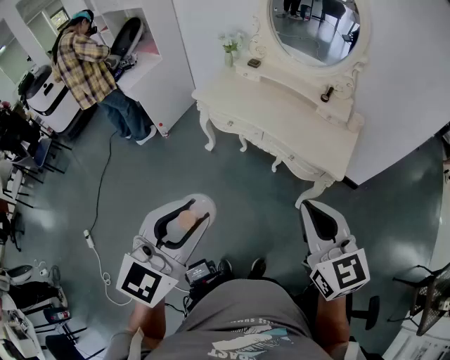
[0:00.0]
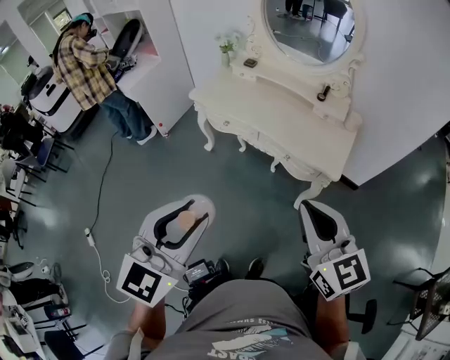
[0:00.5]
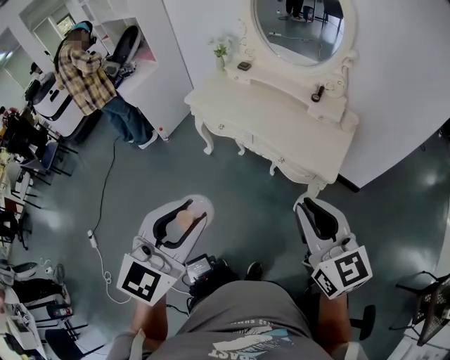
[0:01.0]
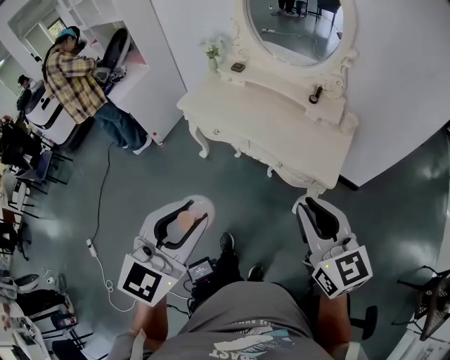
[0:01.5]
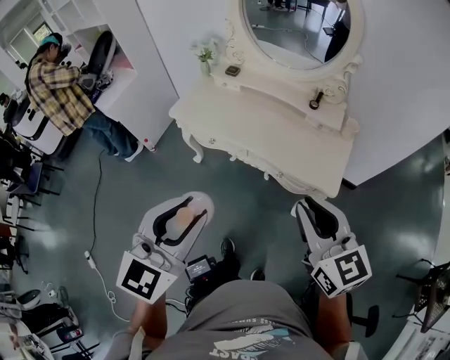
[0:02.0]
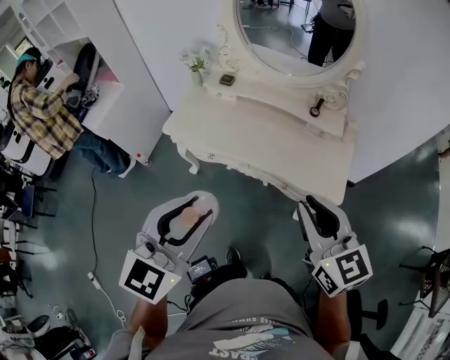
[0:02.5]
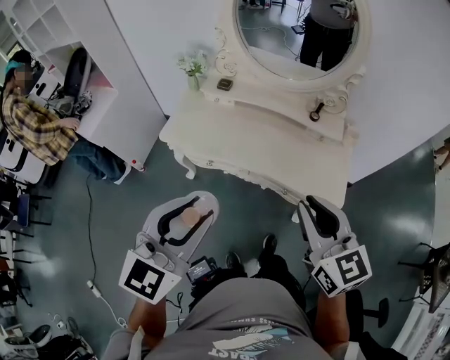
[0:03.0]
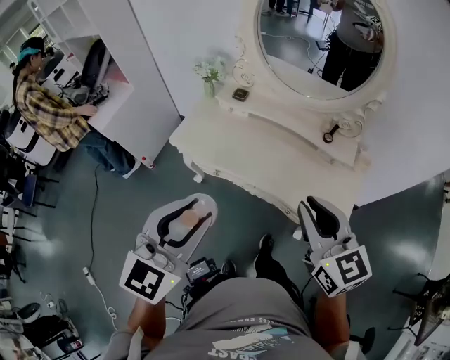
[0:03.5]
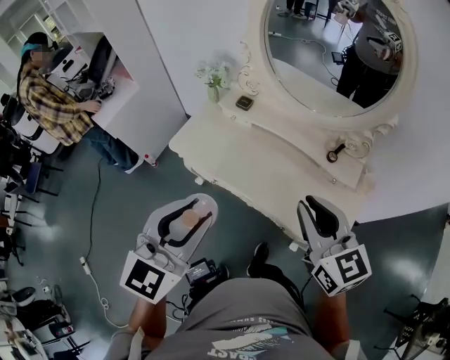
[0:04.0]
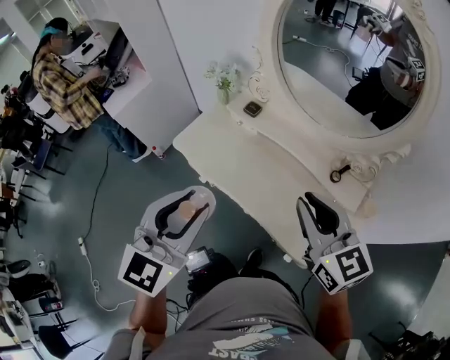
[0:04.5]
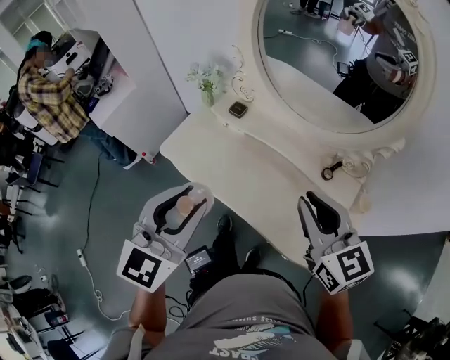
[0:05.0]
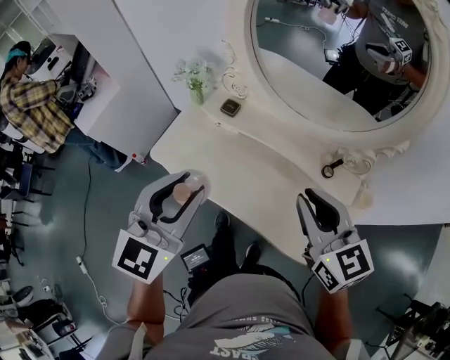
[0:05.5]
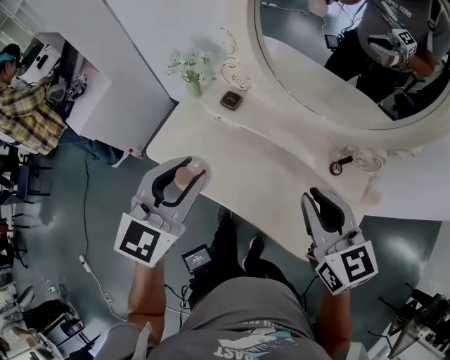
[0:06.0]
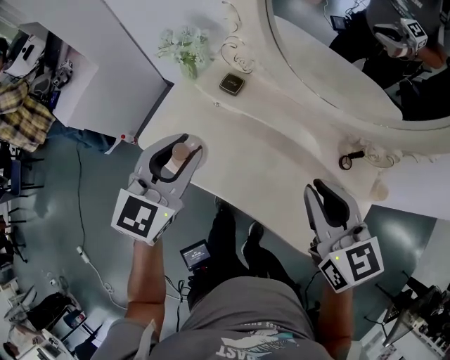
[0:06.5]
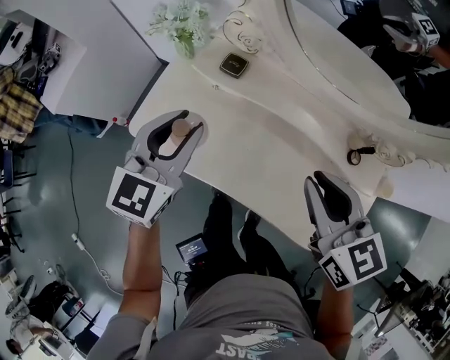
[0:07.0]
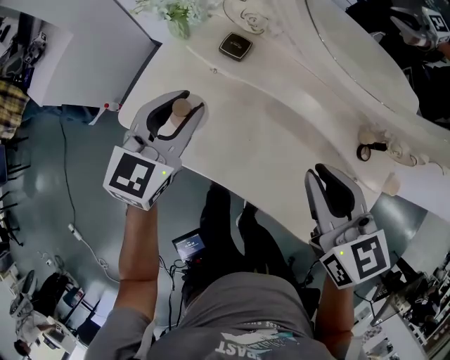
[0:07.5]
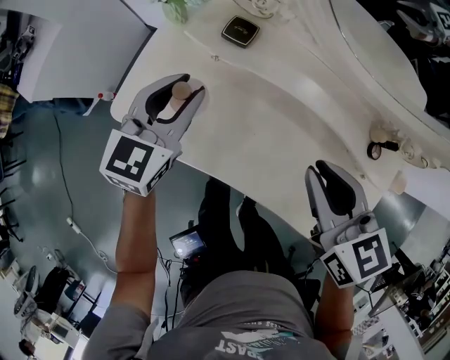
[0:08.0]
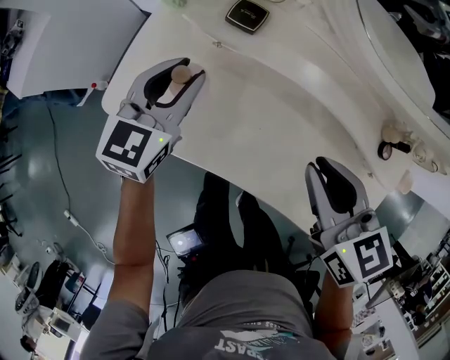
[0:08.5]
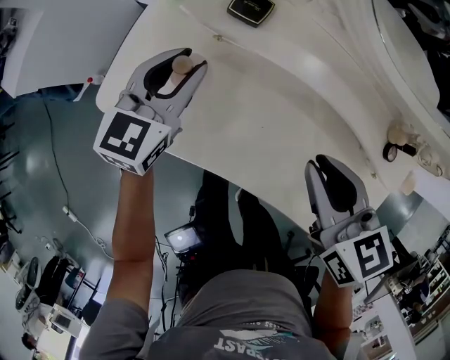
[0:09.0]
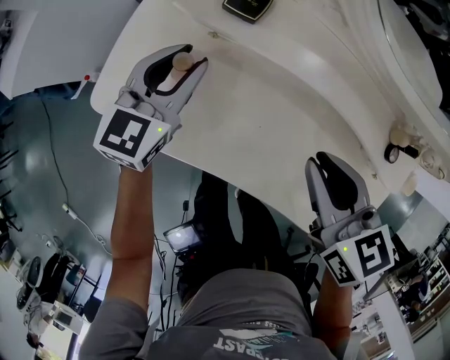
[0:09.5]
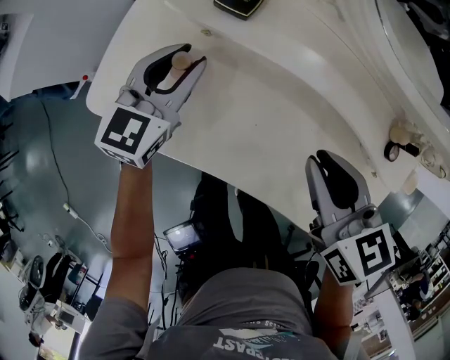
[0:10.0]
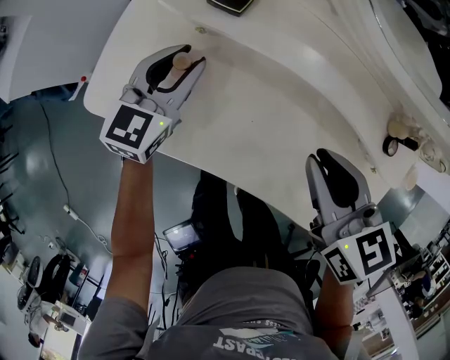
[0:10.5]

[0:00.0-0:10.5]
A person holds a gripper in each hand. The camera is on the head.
0:00.0 to 0:02.0: The left gripper moves forward, roughly 15 cm. Meanwhile the right gripper shifts some 15 cm forward and to the right.
0:02.0 to 0:04.0: The grippers both shift forward by some 25 cm.
0:04.0 to 0:06.5: The grippers both shift forward and downward by approximately 30 cm.
0:06.5 to 0:08.5: The right gripper shifts about 15 cm downward. Meanwhile the left gripper shifts roughly 25 cm downward and forward.
0:08.5 to 0:10.5: The left gripper shifts roughly 5 cm downward.

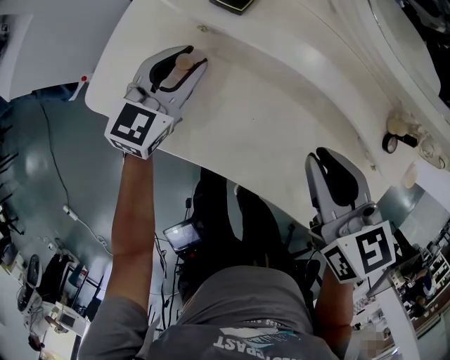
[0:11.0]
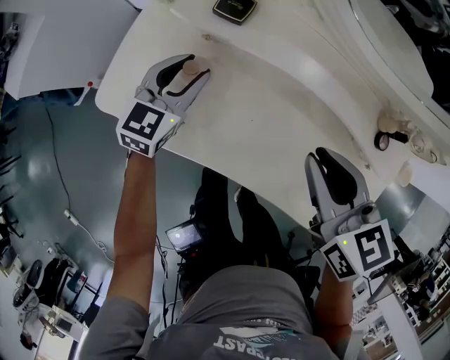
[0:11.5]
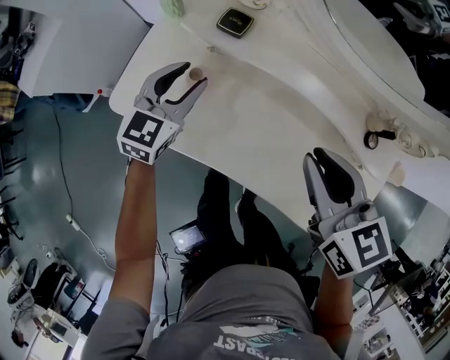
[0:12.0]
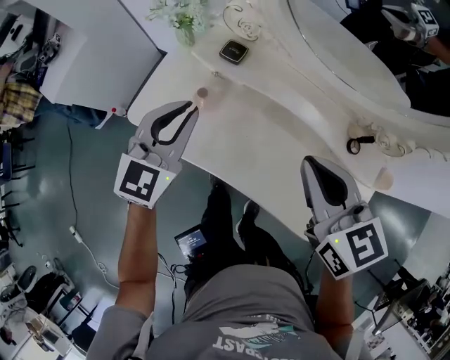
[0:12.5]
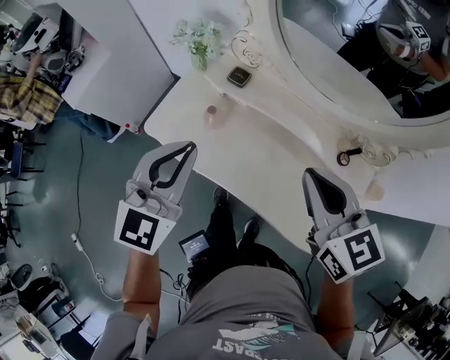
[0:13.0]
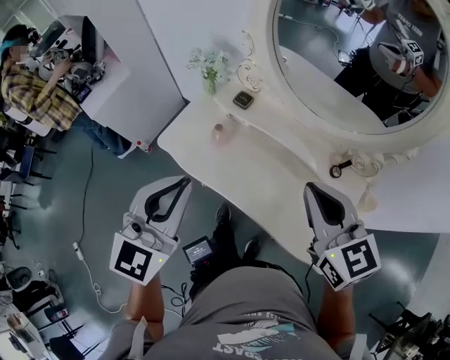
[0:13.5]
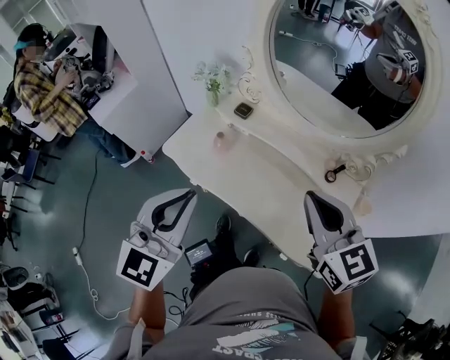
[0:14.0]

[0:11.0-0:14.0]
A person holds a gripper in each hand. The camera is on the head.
0:11.0 to 0:12.5: The right gripper heads upward, covering about 15 cm; the left gripper goes roughly 25 cm upward and backward.
0:12.5 to 0:14.0: The right gripper shifts approximately 20 cm upward and backward. Meanwhile the left gripper travels backward and upward by about 30 cm.

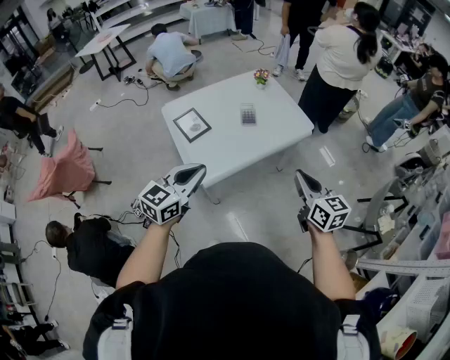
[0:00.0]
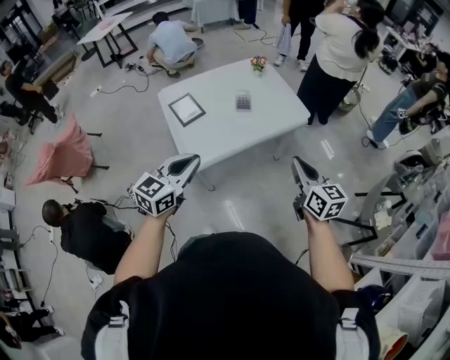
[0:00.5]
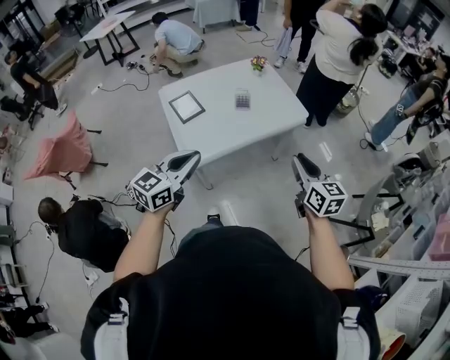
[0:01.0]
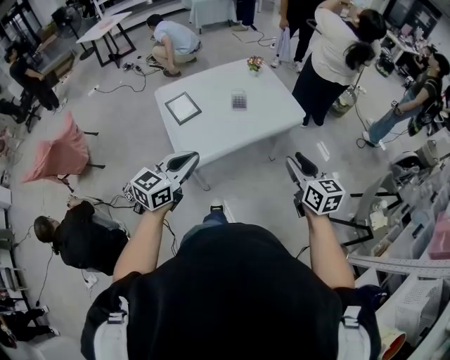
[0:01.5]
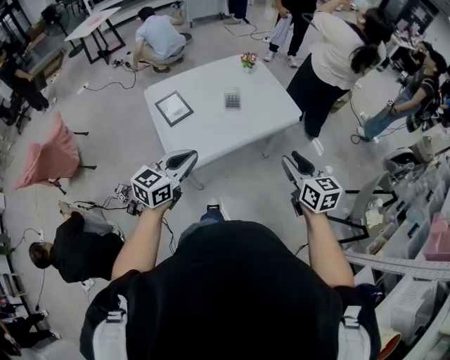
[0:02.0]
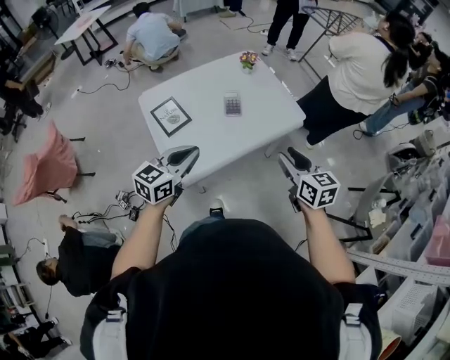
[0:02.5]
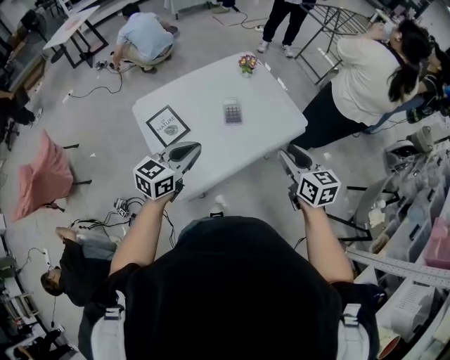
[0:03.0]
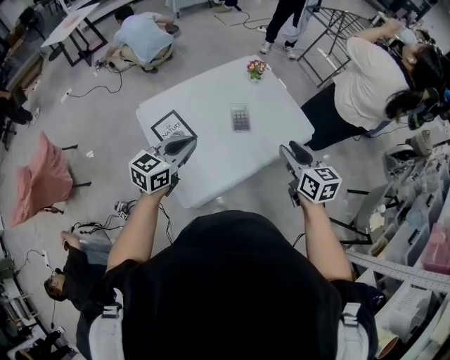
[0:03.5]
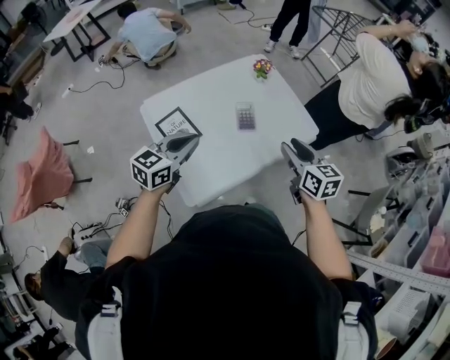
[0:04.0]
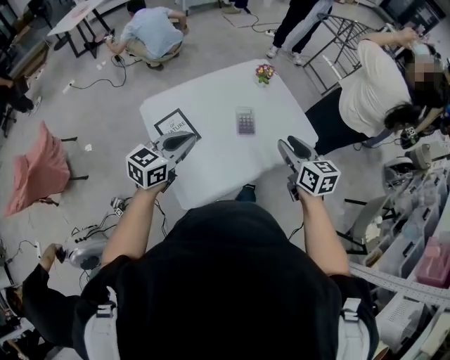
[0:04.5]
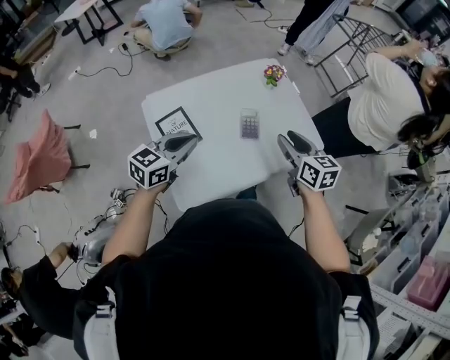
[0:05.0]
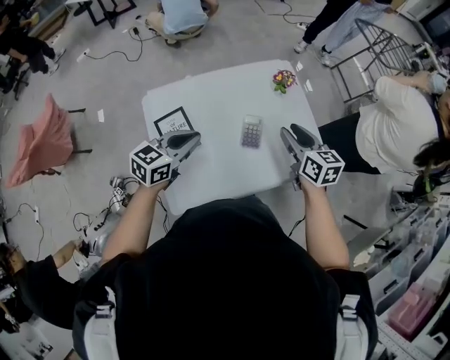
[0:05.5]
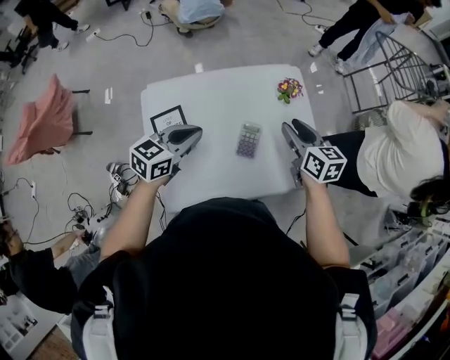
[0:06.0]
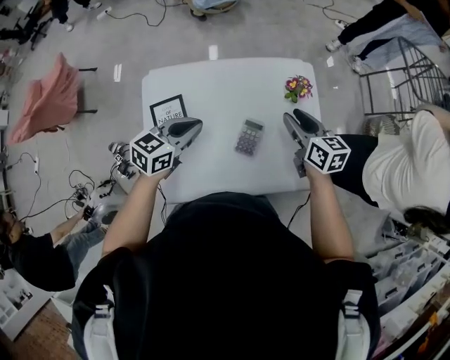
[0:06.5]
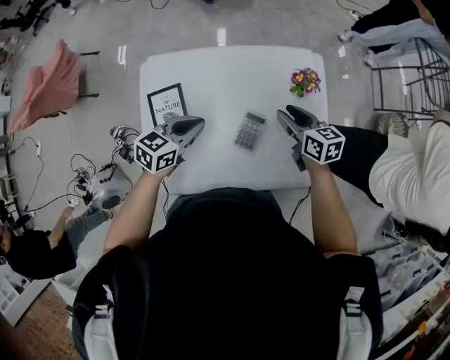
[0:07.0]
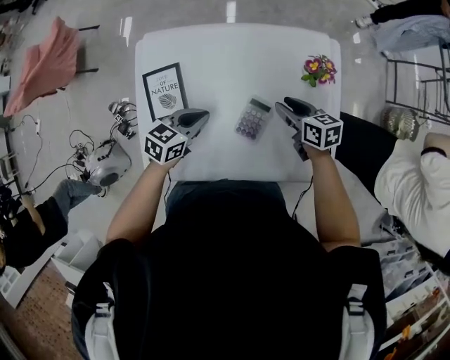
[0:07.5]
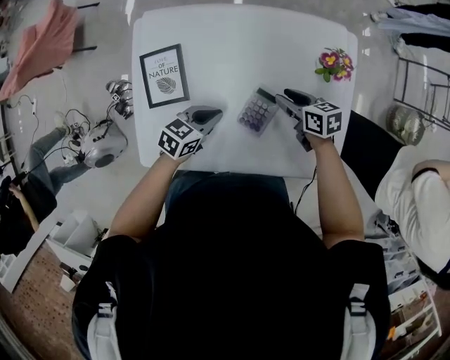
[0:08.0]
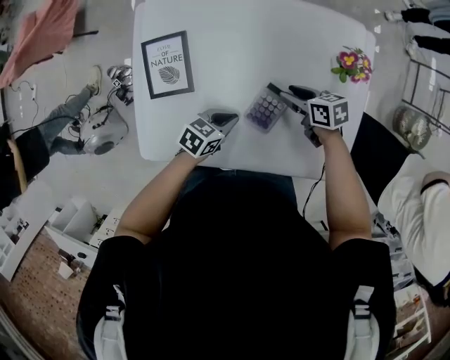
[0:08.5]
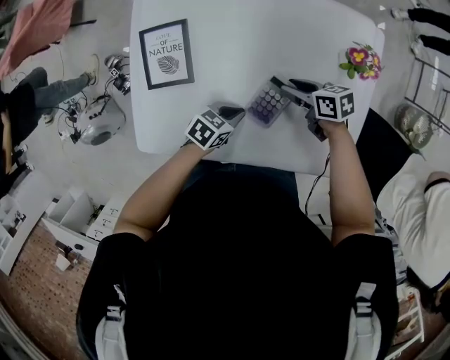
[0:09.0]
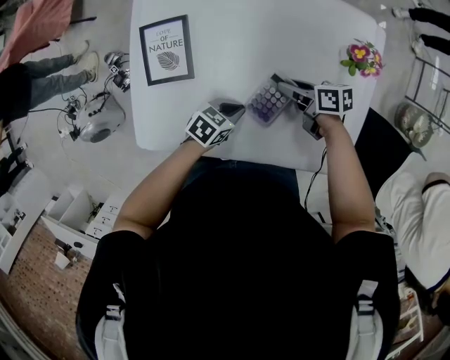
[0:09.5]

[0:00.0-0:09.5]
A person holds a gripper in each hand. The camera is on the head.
0:00.0 to 0:02.0: The right gripper changes place by some 5 cm, and opens up, while the left gripper shifts by approximately 5 cm.
0:02.0 to 0:04.0: Both grippers move forward and to the left, about 25 cm.
0:04.0 to 0:05.5: The left gripper heads forward, covering roughly 10 cm; the right gripper travels forward by approximately 20 cm.
0:05.5 to 0:07.5: The two grippers go about 20 cm downward. The left gripper changes its angle by about 30 degrees. Meanwhile the right gripper changes its angle by approximately 40 degrees.
0:07.5 to 0:09.5: Both grippers move downward, approximately 15 cm. The right gripper swivels approximately 30 degrees.

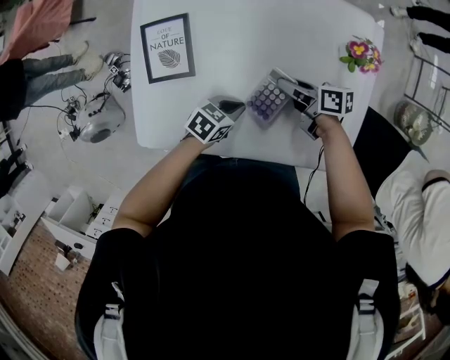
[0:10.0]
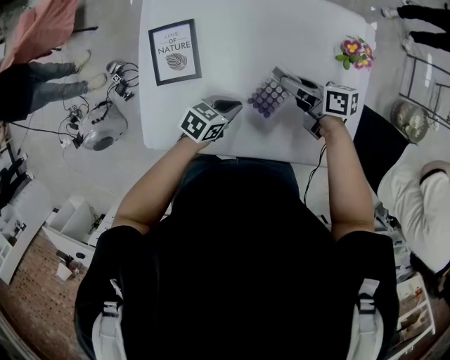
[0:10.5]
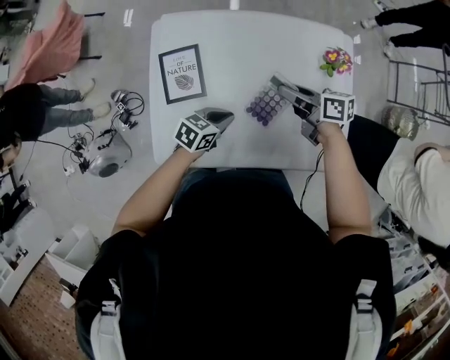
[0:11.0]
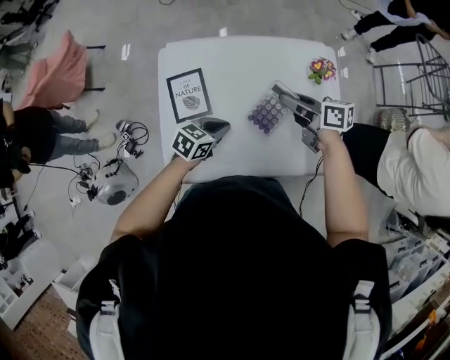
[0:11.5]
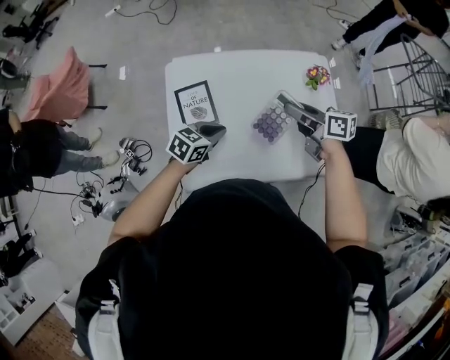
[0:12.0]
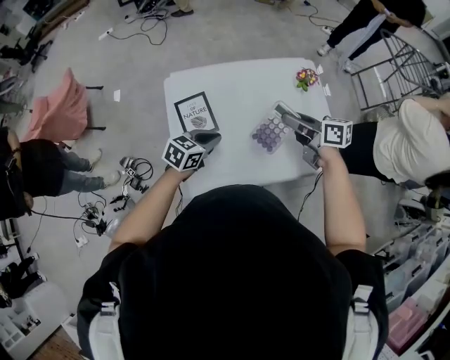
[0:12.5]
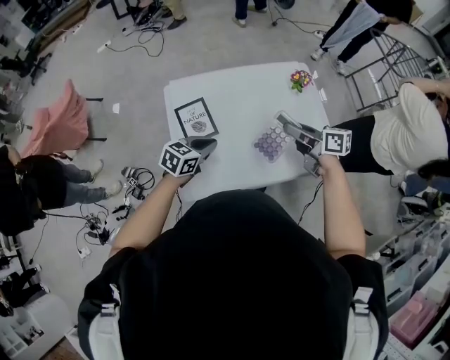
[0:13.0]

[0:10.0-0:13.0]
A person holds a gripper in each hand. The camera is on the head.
0:10.0 to 0:11.5: Both grippers move upward, about 20 cm. The right gripper swivels roughly 30 degrees.
0:11.5 to 0:13.0: The left gripper travels to the left and upward by about 10 cm. The right gripper moves backward and upward, roughly 10 cm.
